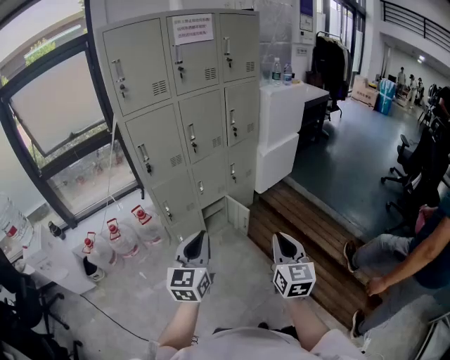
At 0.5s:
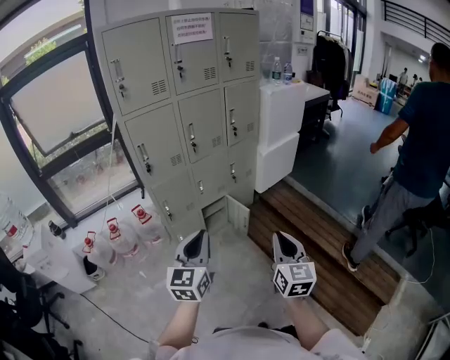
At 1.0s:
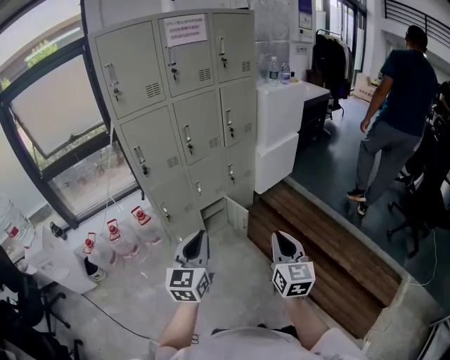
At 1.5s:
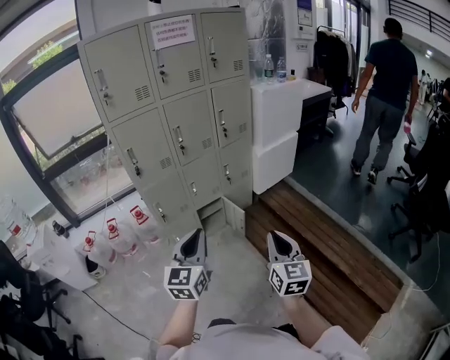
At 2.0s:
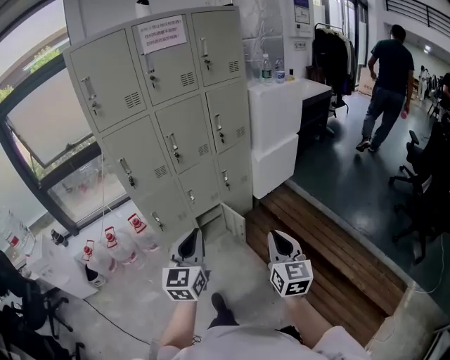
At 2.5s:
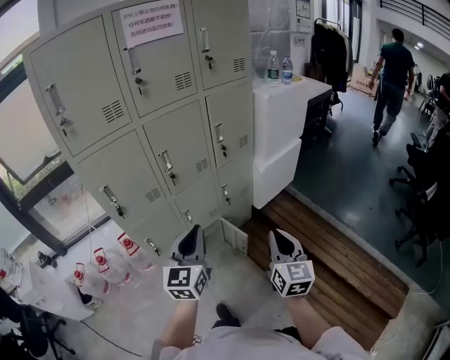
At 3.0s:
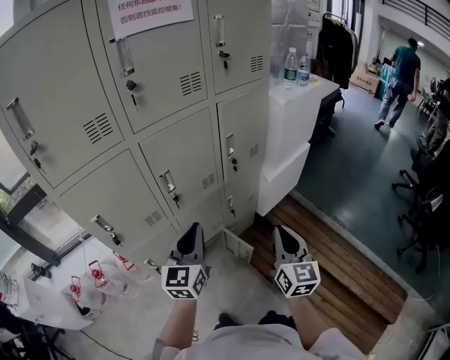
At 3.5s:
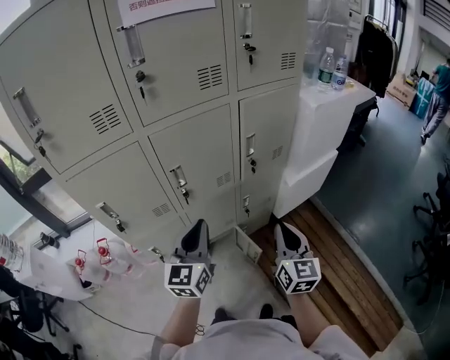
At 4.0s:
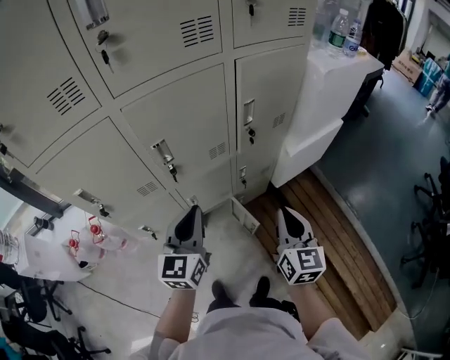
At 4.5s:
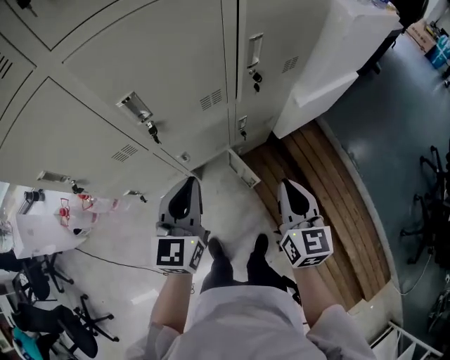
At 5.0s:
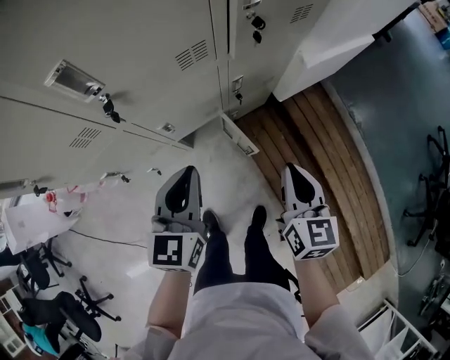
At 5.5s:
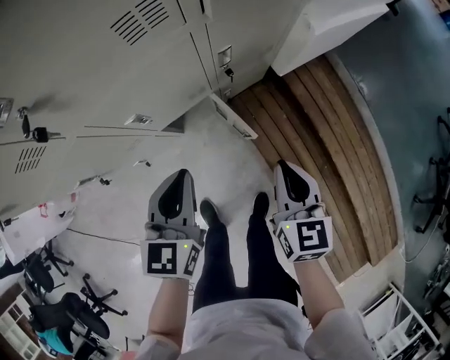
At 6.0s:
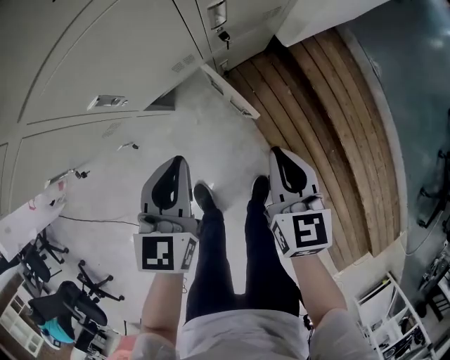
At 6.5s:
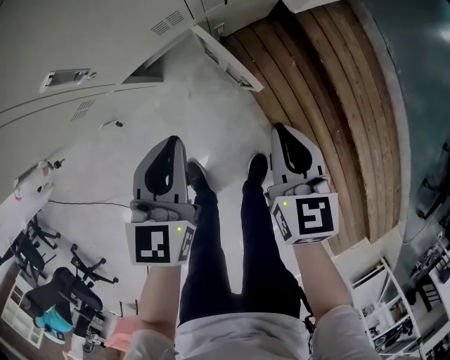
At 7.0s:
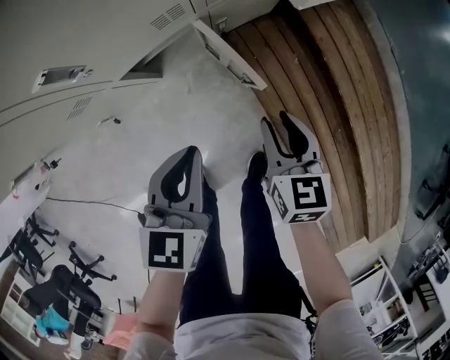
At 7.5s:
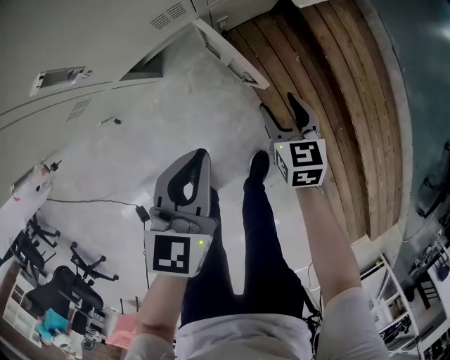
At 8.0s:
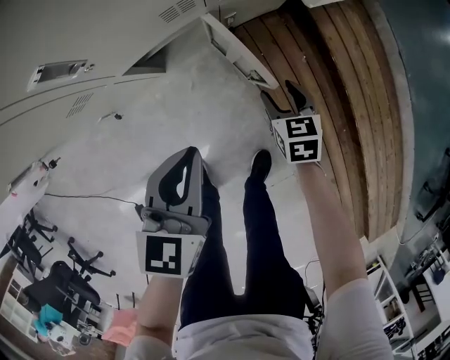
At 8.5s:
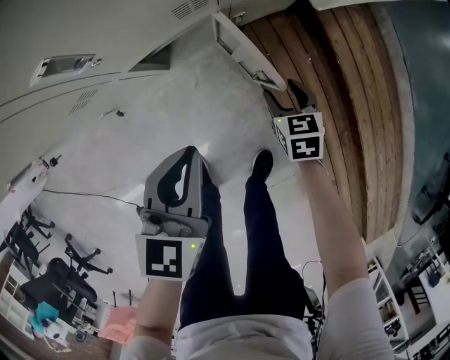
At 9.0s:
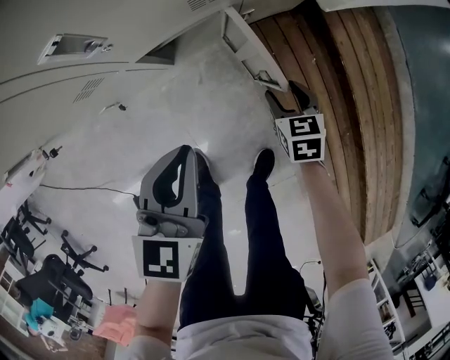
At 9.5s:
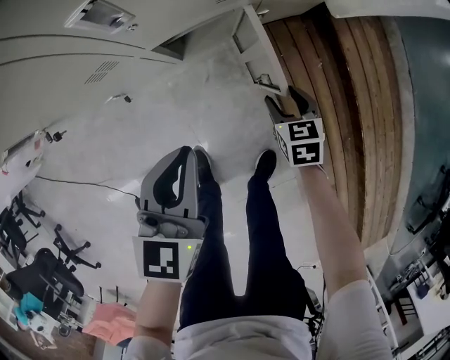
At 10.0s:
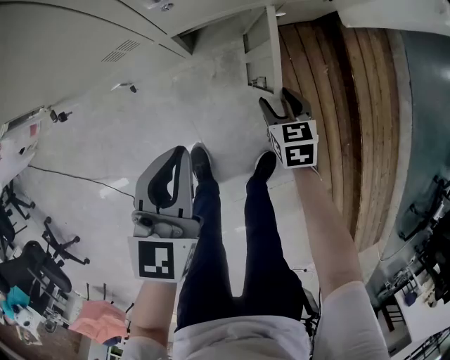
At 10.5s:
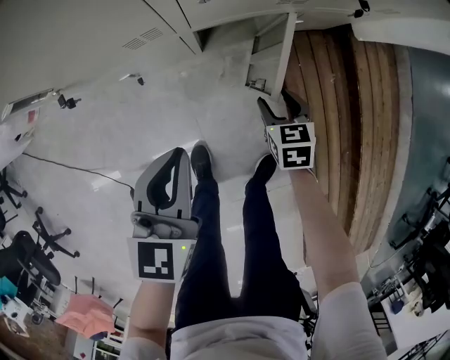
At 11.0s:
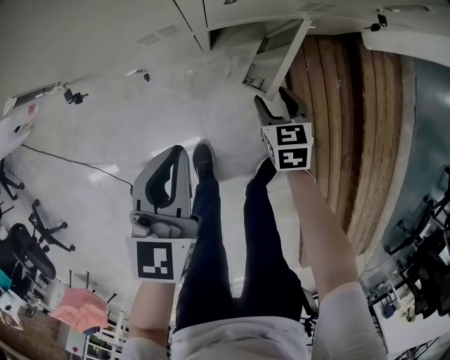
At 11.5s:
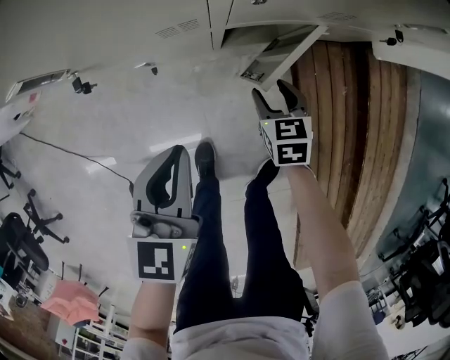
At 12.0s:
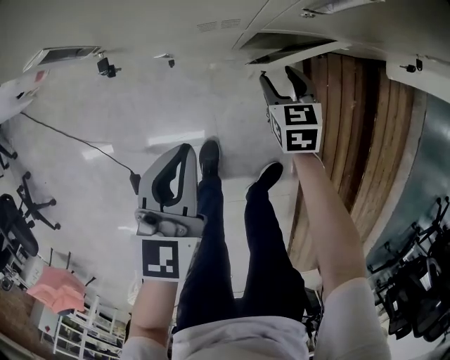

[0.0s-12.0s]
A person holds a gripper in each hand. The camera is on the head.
0.0s to 2.0s: The right gripper is displaced forward and to the right by about 15 cm. The left gripper moves to the right and forward, roughly 15 cm.
2.0s to 4.0s: Both grippers are carried forward, roughly 50 cm.
4.0s to 6.0s: The two grippers go some 40 cm downward. The left gripper turns by about 20 degrees. The right gripper turns by roughly 20 degrees.
6.0s to 8.0s: The left gripper travels downward by some 10 cm. Meanwhile the right gripper heads downward, covering approximately 25 cm, rotates roughly 20 degrees, and opens up.
8.0s to 10.0s: The two grippers go approximately 15 cm to the left.
10.0s to 12.0s: The left gripper travels to the left by about 15 cm; the right gripper heads to the left and forward, covering about 20 cm.

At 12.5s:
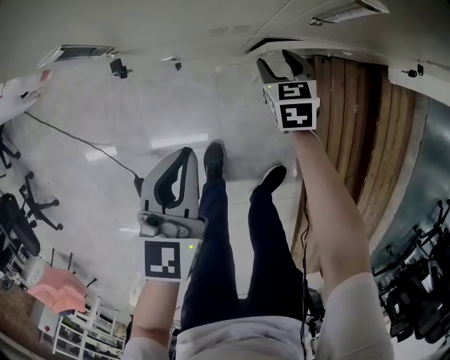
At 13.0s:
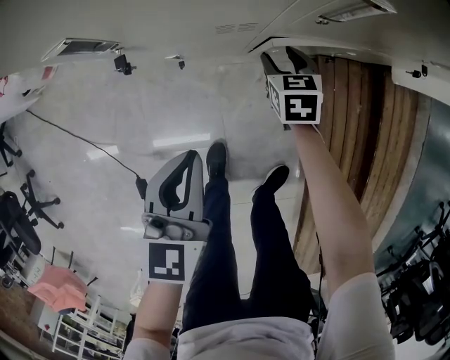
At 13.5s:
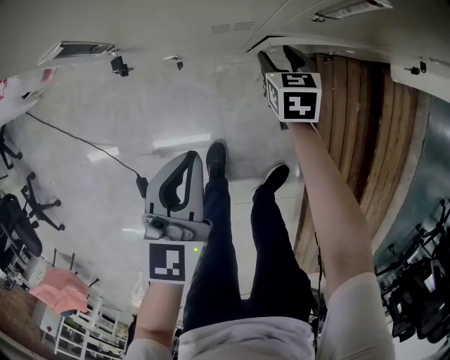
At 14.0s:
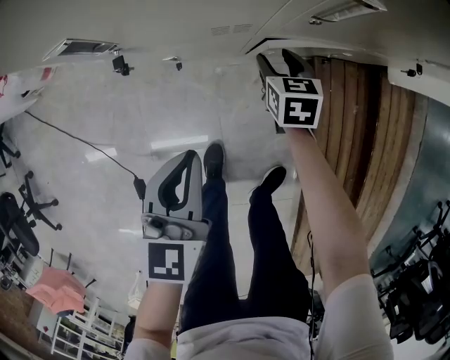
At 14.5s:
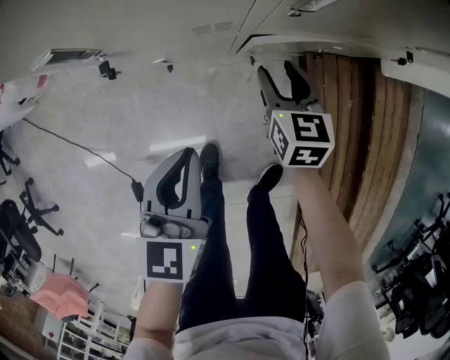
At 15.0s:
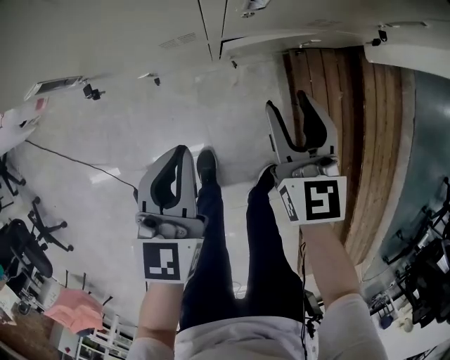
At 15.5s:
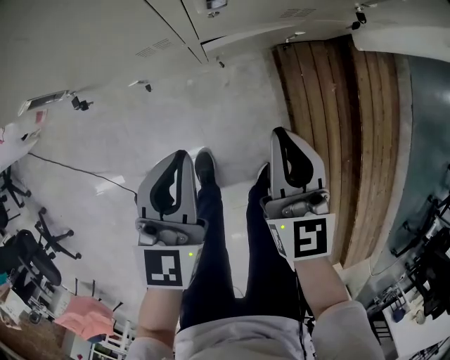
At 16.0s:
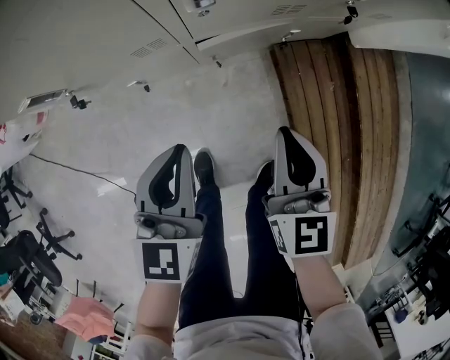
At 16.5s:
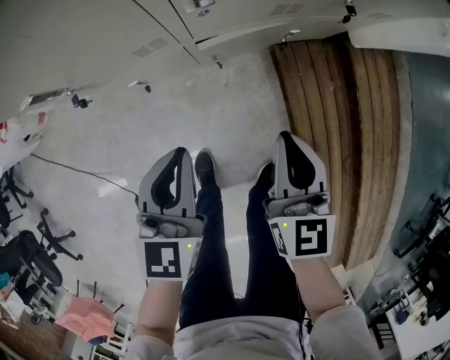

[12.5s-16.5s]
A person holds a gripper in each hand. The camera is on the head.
12.5s to 14.5s: The right gripper heads upward, covering some 10 cm.
14.5s to 16.5s: The left gripper heads to the right, covering some 10 cm, while the right gripper heads backward, upward and to the right, covering some 20 cm, and closes its fingers.

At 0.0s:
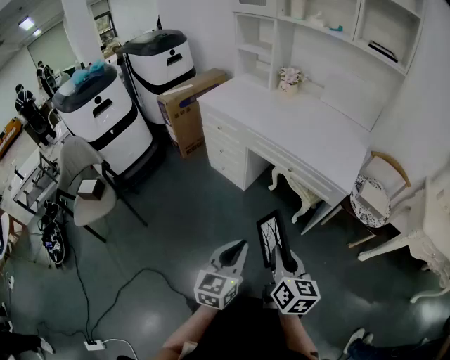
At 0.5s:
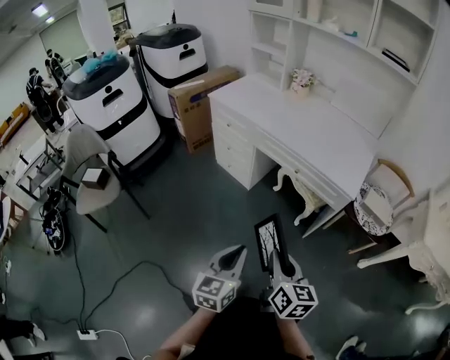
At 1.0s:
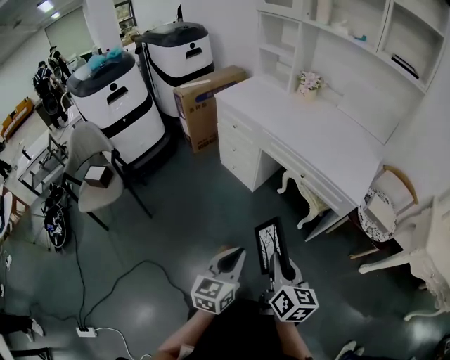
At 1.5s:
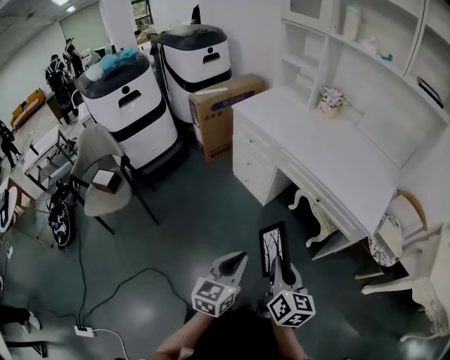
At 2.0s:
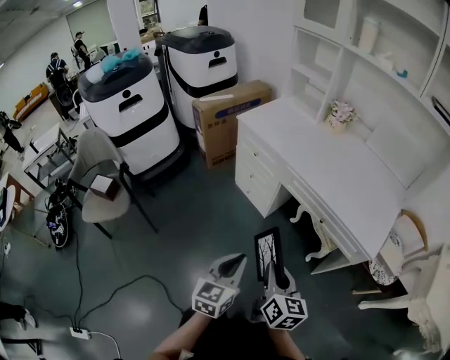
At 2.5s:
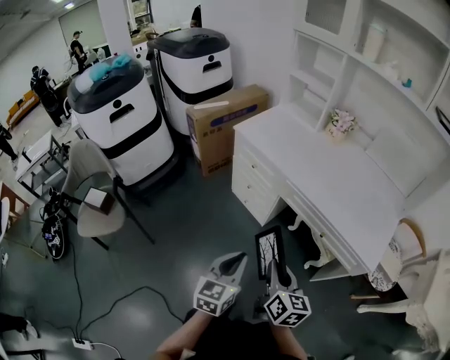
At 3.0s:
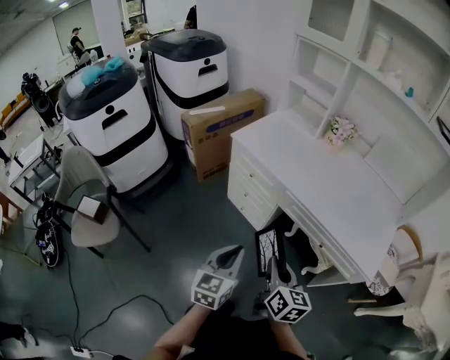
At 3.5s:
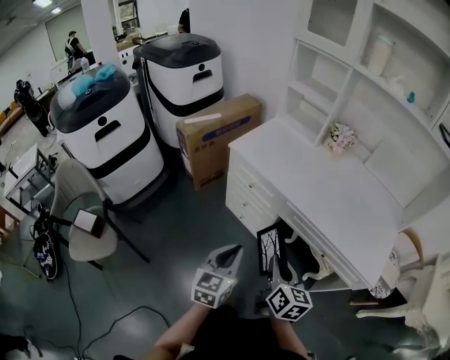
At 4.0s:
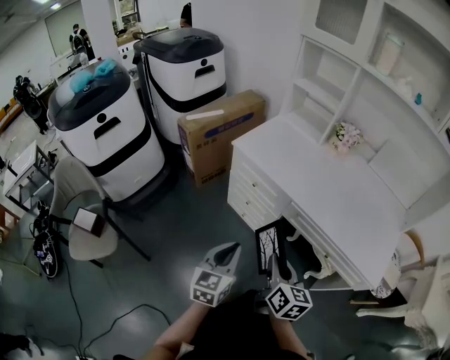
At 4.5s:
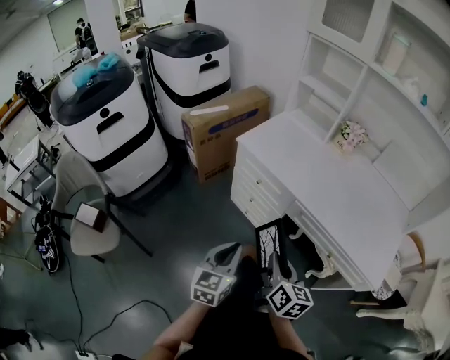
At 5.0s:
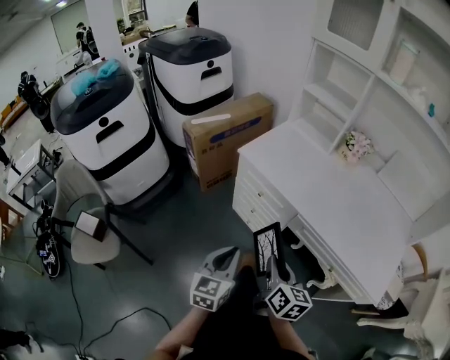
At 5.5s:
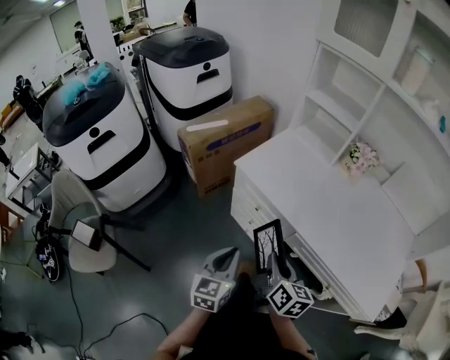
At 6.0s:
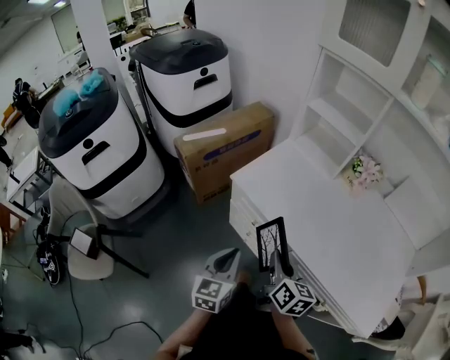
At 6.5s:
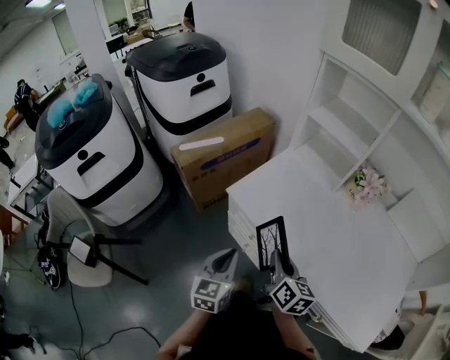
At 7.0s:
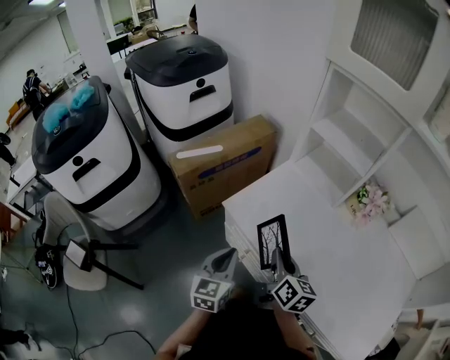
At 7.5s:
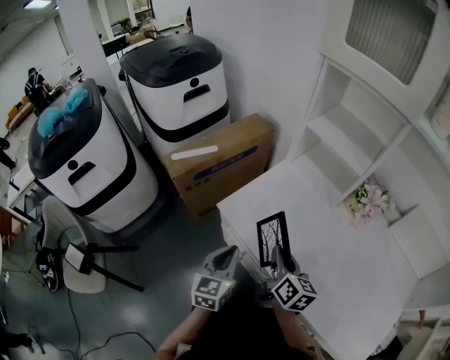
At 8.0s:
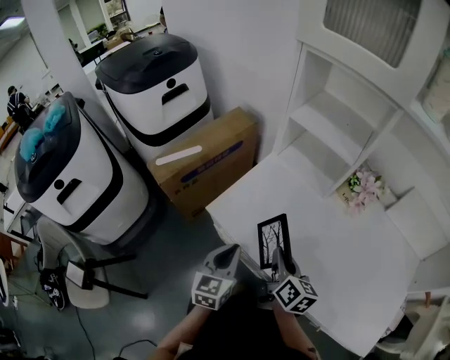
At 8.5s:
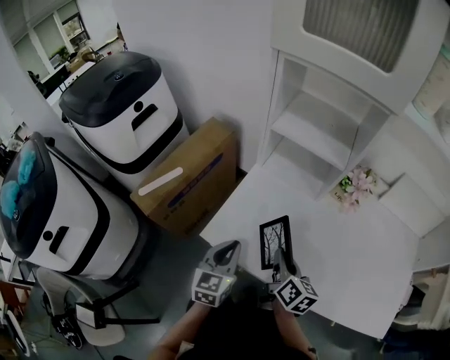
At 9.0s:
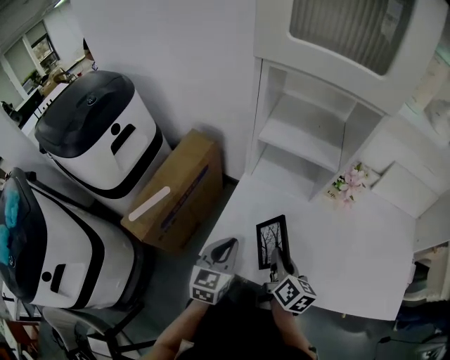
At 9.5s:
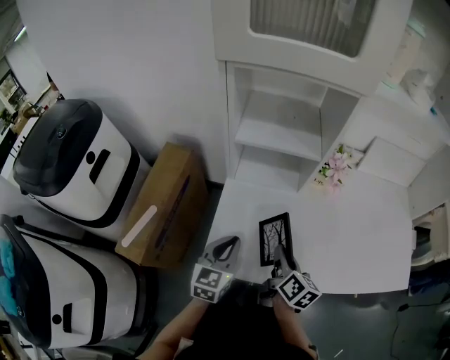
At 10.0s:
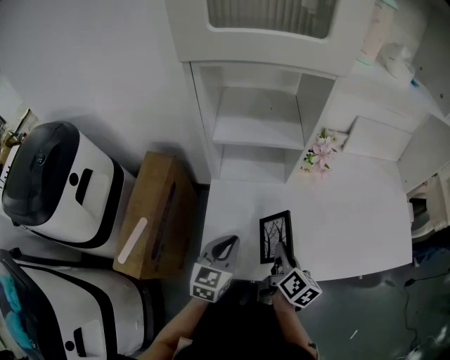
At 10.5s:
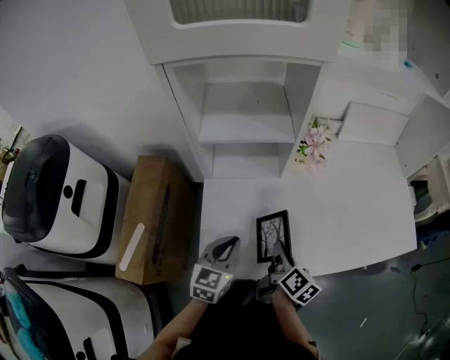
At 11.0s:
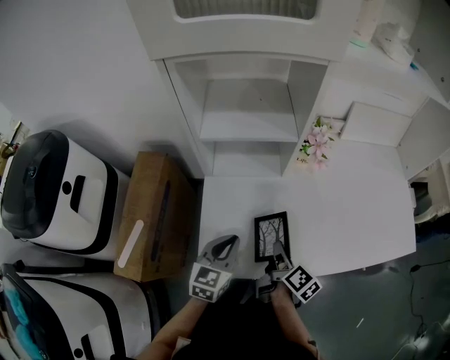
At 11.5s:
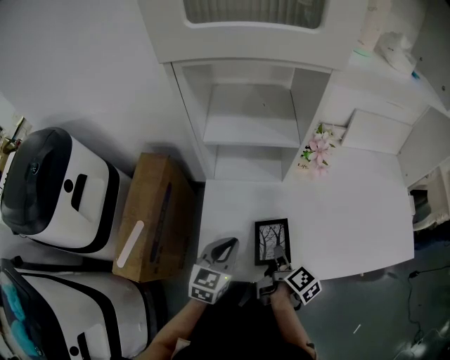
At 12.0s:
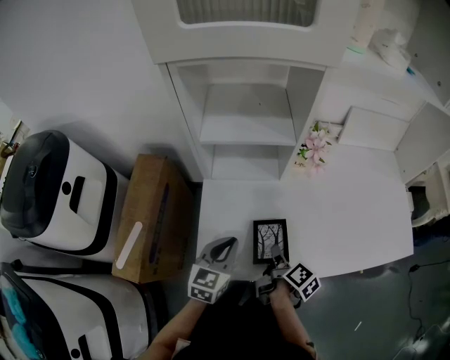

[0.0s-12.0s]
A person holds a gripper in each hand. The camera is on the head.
0.0s to 2.0s: The grippers both shift forward and to the left by approximately 15 cm.
2.0s to 4.0s: Both grippers travel together forward and to the left, roughly 25 cm.
4.0s to 6.0s: The two grippers go about 20 cm forward.
6.0s to 8.0s: Both grippers travel together forward, roughly 15 cm.
8.0s to 10.0s: The right gripper ends up about 5 cm from where it was, and changes its angle by approximately 50 degrees. The left gripper changes place by approximately 15 cm, and rotates approximately 40 degrees.
10.0s to 12.0s: The right gripper travels downward by some 5 cm, and rotates approximately 30 degrees.
